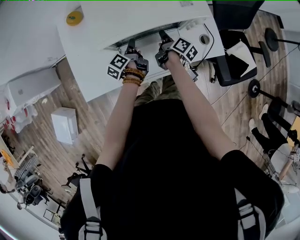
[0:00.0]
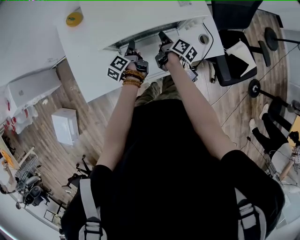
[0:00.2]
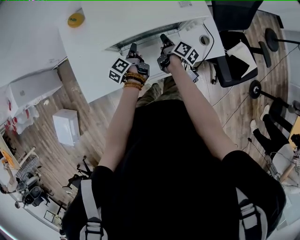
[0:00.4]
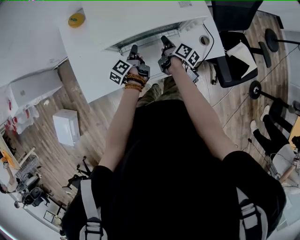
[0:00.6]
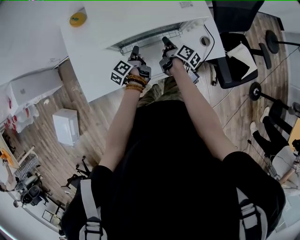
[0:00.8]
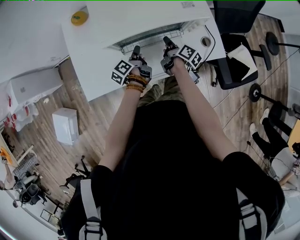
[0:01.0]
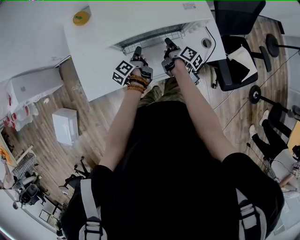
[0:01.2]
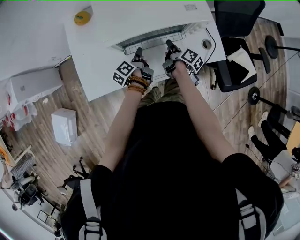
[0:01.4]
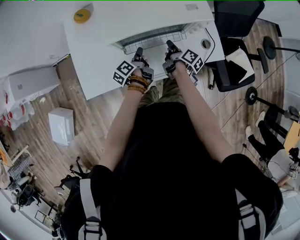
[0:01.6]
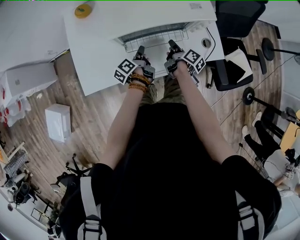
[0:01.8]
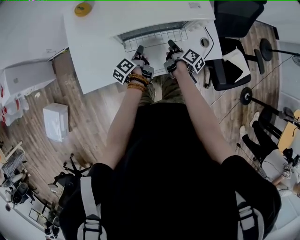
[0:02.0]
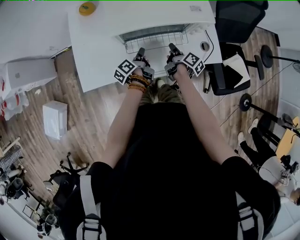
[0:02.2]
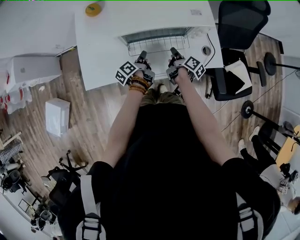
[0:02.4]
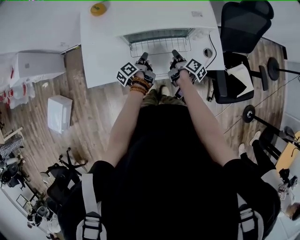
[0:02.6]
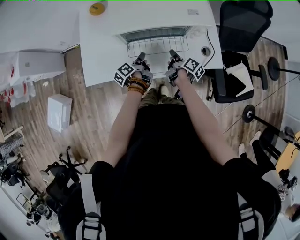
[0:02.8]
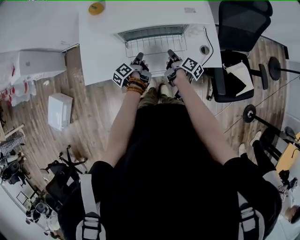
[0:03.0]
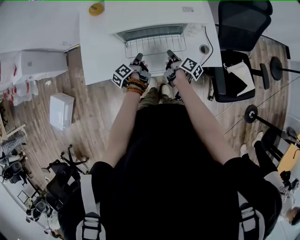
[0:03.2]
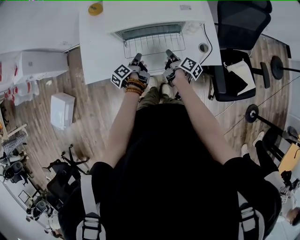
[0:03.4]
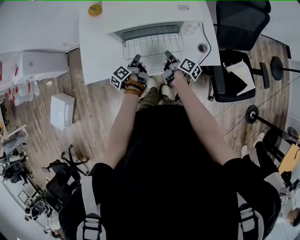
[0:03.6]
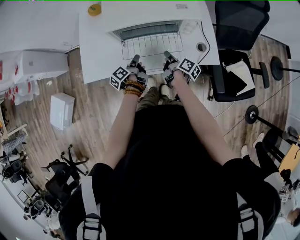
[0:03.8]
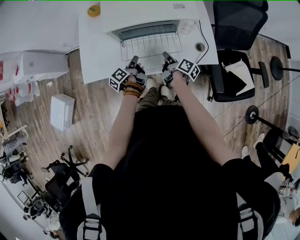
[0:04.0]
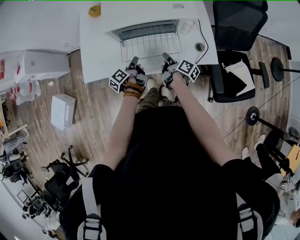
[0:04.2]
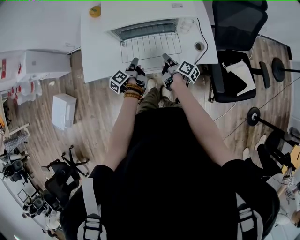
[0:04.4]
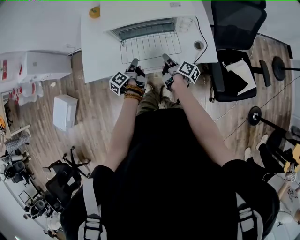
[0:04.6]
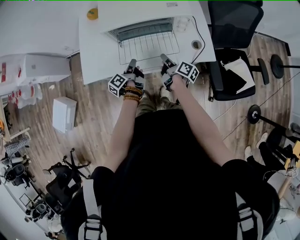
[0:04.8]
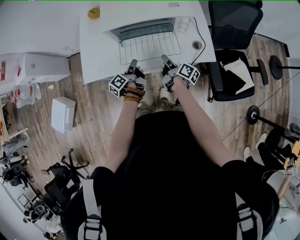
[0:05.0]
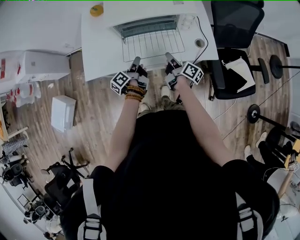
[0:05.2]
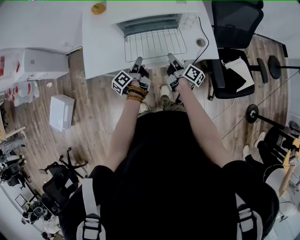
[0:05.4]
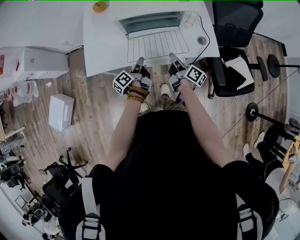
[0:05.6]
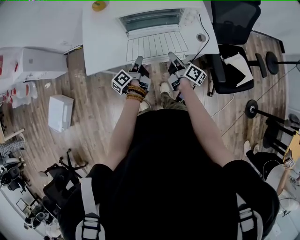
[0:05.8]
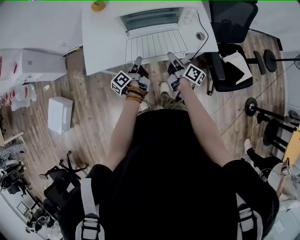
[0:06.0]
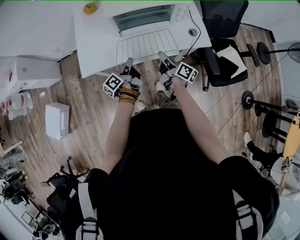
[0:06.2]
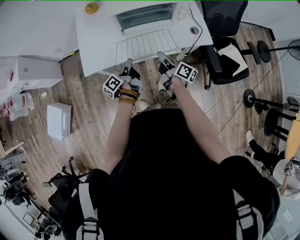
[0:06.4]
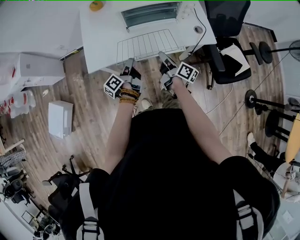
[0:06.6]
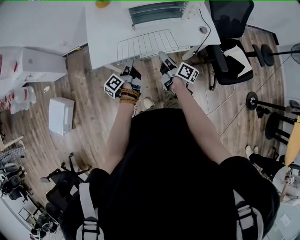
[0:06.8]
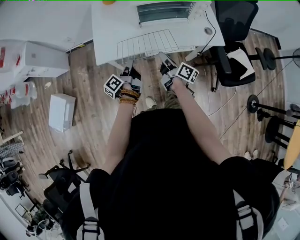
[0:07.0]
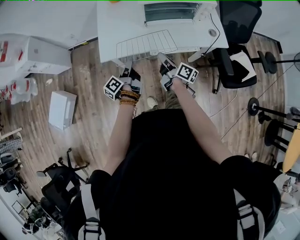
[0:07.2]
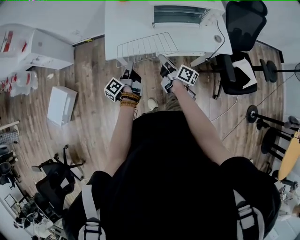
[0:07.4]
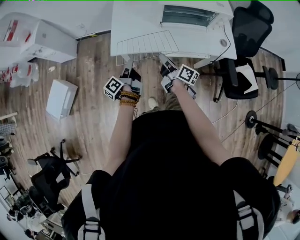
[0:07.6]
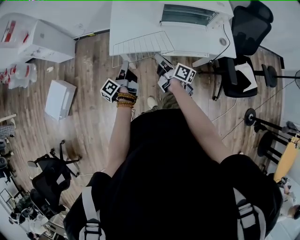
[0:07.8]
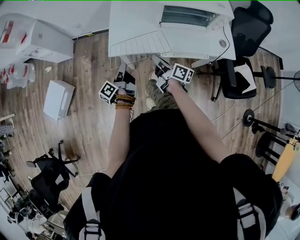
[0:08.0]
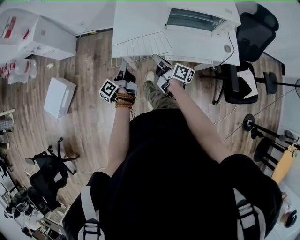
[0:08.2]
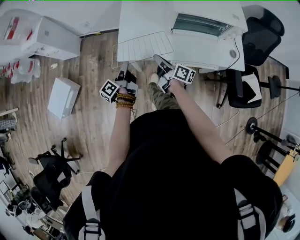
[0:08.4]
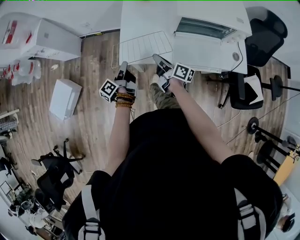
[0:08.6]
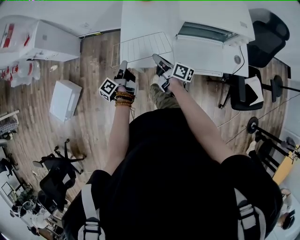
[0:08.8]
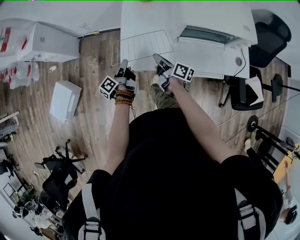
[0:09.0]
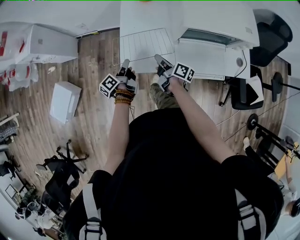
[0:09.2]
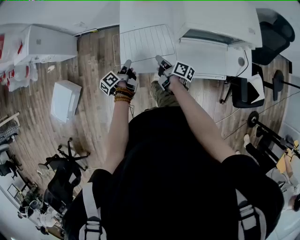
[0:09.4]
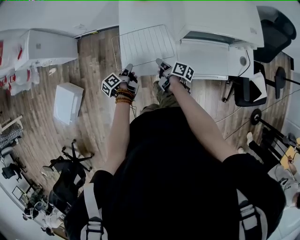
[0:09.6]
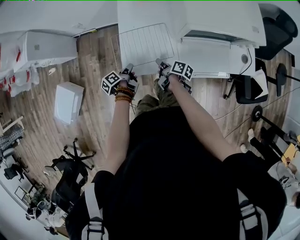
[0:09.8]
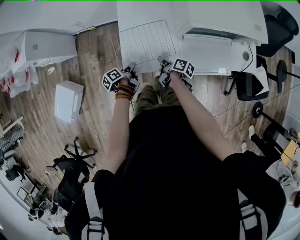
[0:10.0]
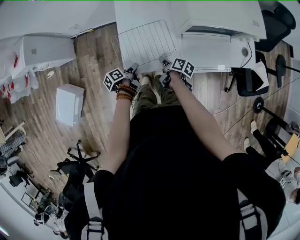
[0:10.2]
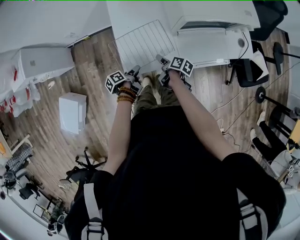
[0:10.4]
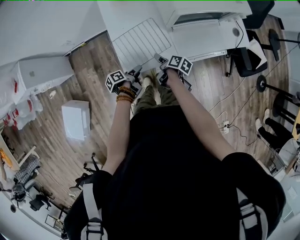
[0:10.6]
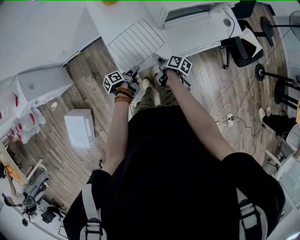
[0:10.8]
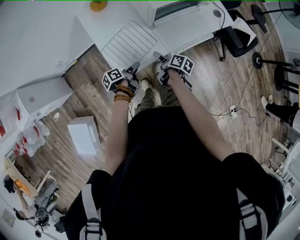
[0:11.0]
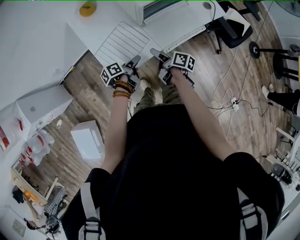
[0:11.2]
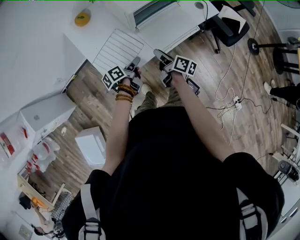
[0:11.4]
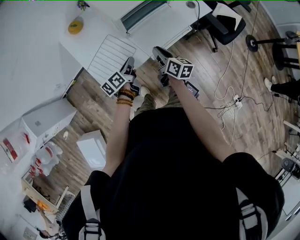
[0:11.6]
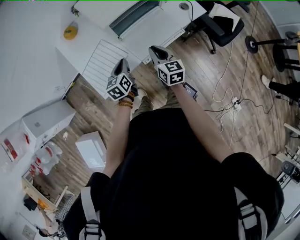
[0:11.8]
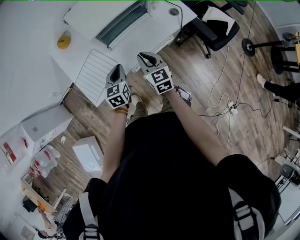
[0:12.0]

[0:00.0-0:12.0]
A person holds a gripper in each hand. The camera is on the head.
0:00.0 to 0:01.6: The grippers make only small movements.
0:01.6 to 0:03.0: Both grippers travel together backward, some 5 cm.
0:03.0 to 0:04.4: The left gripper moves backward, some 5 cm, while the right gripper changes place by about 5 cm.
0:04.4 to 0:06.0: The right gripper travels backward and upward by some 10 cm. The left gripper moves backward, roughly 5 cm.
0:06.0 to 0:07.6: Both grippers move to the left, approximately 25 cm.
0:07.6 to 0:09.0: The two grippers go roughly 20 cm forward.
0:09.0 to 0:10.4: The grippers both shift downward by roughly 10 cm. The left gripper changes its angle by about 40 degrees, and opens up. Meanwhile the right gripper tilts its fingers approximately 30 degrees downward, and opens up.
0:10.4 to 0:12.0: The right gripper shifts some 30 cm to the right and upward, rolls counterclockwise, seen from behind, by some 60 degrees, and closes up. Meanwhile the left gripper travels to the right, upward and forward by roughly 30 cm, rolls clockwise, seen from behind, by approximately 90 degrees, and closes up.

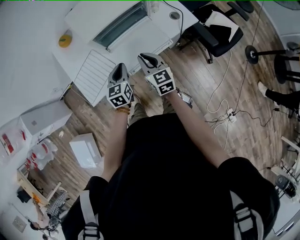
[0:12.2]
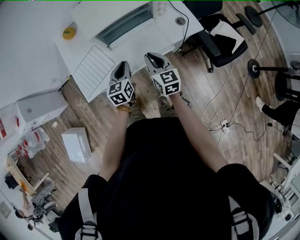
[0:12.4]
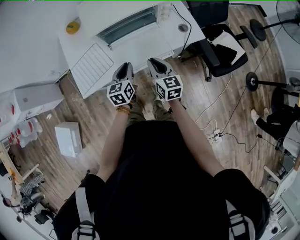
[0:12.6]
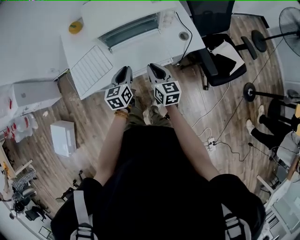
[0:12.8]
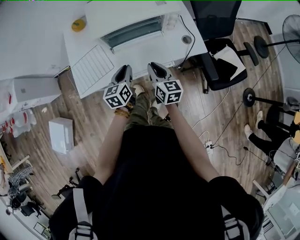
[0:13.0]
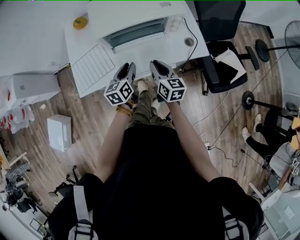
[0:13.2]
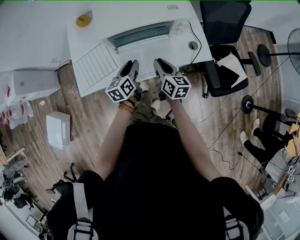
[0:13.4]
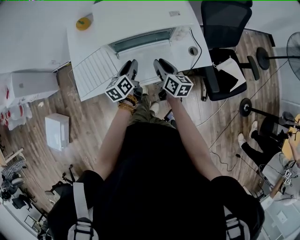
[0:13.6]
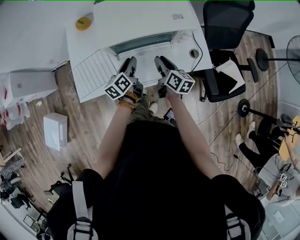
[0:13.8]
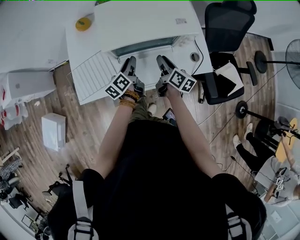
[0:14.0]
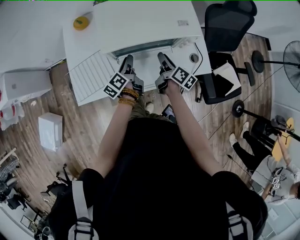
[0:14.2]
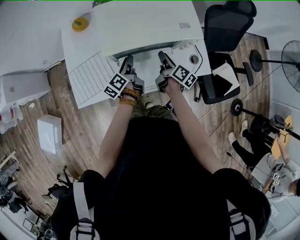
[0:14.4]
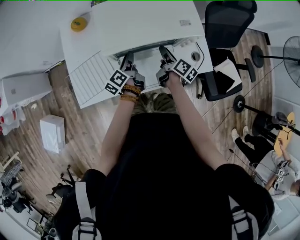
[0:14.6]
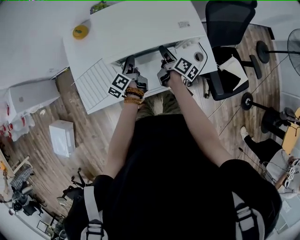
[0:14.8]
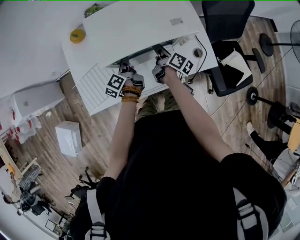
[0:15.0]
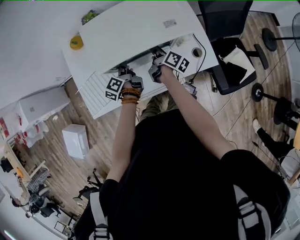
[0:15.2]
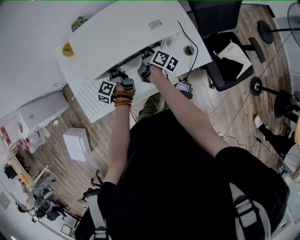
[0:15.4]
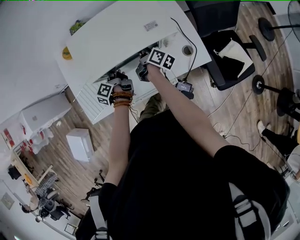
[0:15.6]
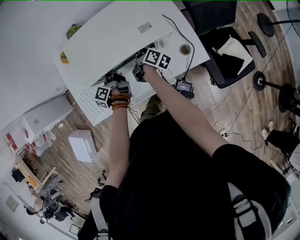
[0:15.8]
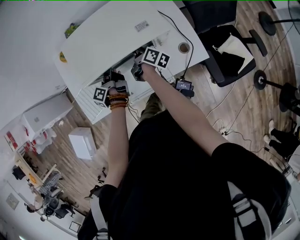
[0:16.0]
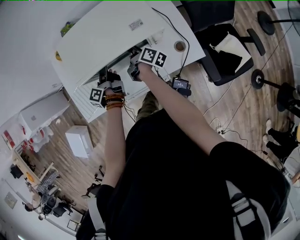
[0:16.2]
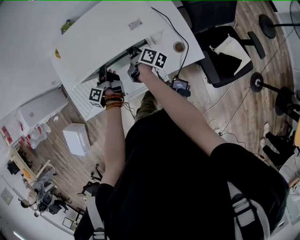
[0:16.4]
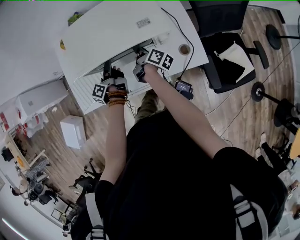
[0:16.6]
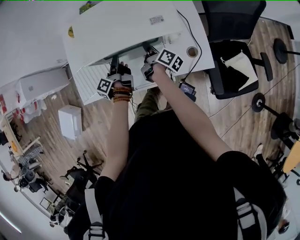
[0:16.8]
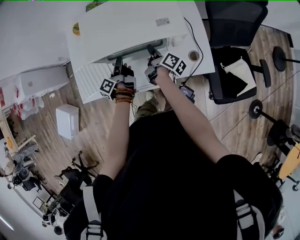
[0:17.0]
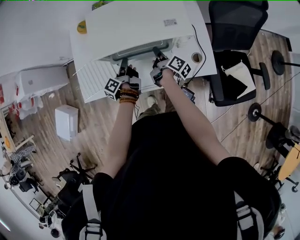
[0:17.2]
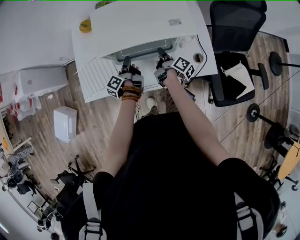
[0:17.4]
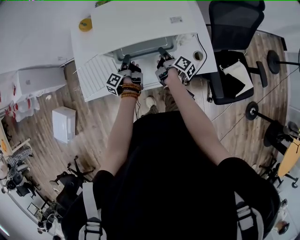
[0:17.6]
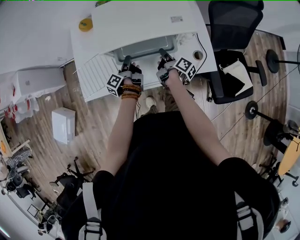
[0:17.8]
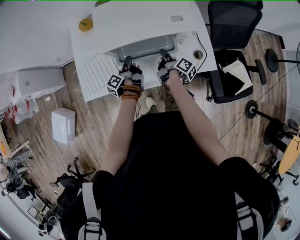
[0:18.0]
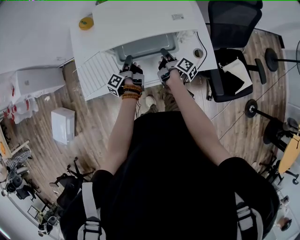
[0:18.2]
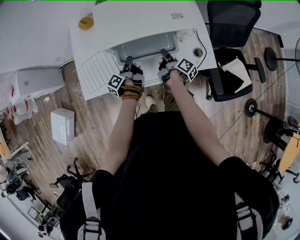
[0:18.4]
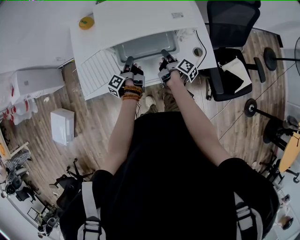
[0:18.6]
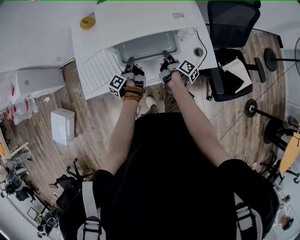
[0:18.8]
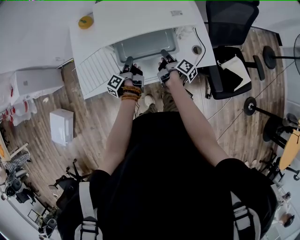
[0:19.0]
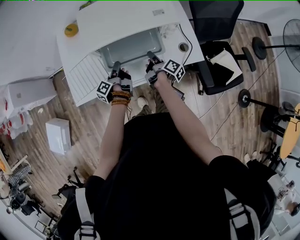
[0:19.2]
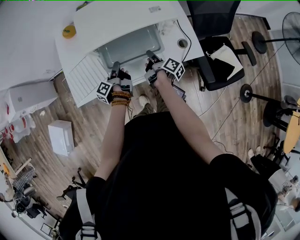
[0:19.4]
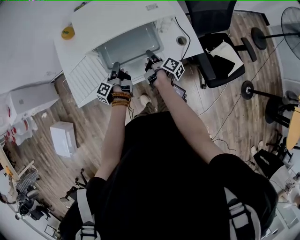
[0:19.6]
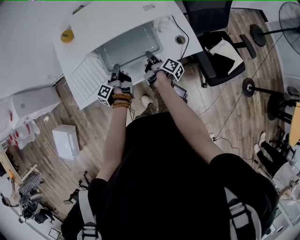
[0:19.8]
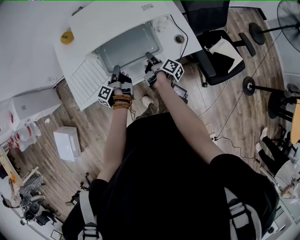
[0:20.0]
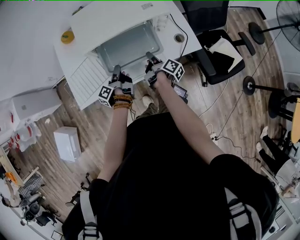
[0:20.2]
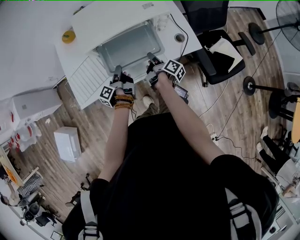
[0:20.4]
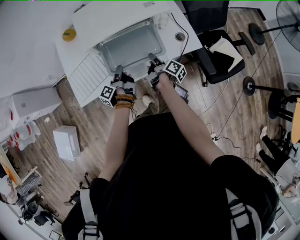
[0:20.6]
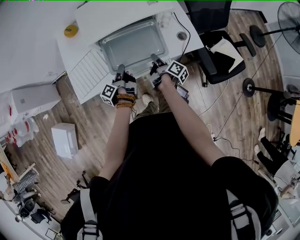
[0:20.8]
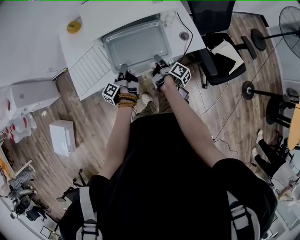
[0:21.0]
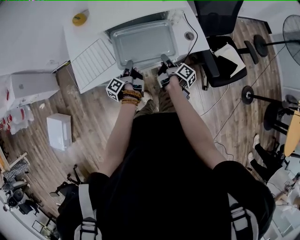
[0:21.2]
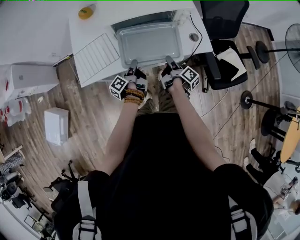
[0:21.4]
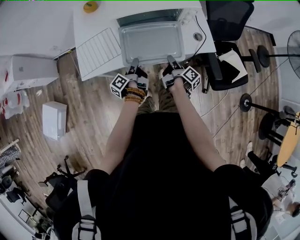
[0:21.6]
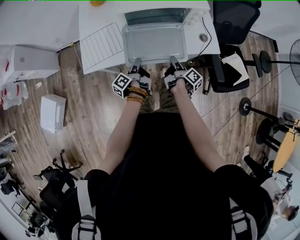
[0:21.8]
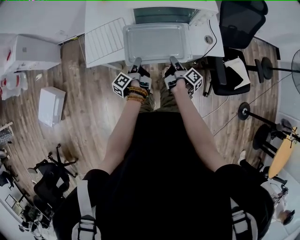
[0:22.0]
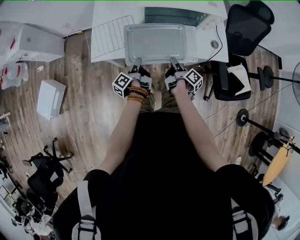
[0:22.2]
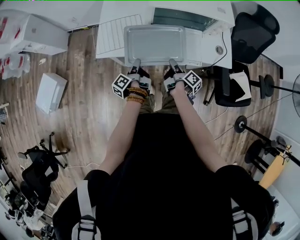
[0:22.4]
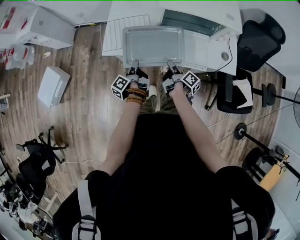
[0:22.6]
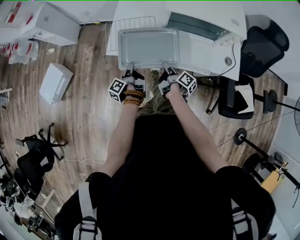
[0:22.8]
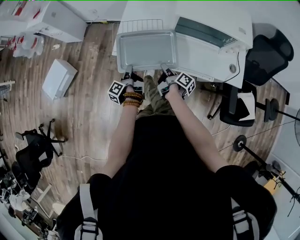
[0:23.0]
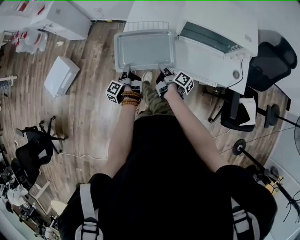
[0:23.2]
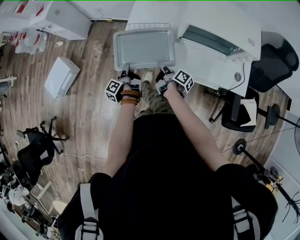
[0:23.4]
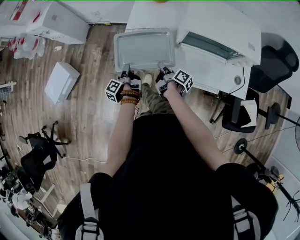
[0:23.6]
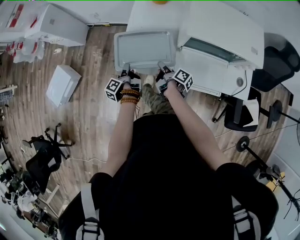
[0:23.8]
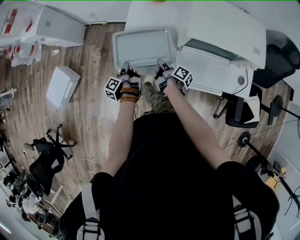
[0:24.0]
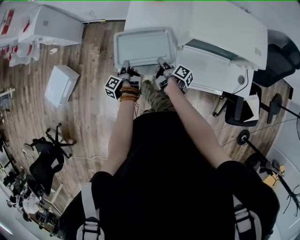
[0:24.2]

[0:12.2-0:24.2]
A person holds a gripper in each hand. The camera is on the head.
0:12.2 to 0:13.8: The left gripper travels forward by approximately 10 cm, and twists about 40 degrees counterclockwise, seen from behind. Meanwhile the right gripper moves forward and to the right, approximately 15 cm, and turns by about 30 degrees.
0:13.8 to 0:15.2: Both grippers travel together forward, some 10 cm. The left gripper swivels roughly 20 degrees; the right gripper turns by some 30 degrees.
0:15.2 to 0:16.6: The right gripper closes its fingers.
0:16.6 to 0:18.2: The right gripper moves backward, some 5 cm, while the left gripper ends up approximately 5 cm from where it was.
0:18.2 to 0:19.8: The two grippers go roughly 5 cm backward.
0:19.8 to 0:21.2: The grippers both shift backward by about 10 cm.
0:21.2 to 0:22.6: The left gripper goes about 20 cm to the left and backward, and turns by about 20 degrees. Meanwhile the right gripper is displaced to the left by about 15 cm, and changes its angle by approximately 20 degrees.
0:22.6 to 0:24.2: The grippers both shift forward and to the left by approximately 20 cm.
